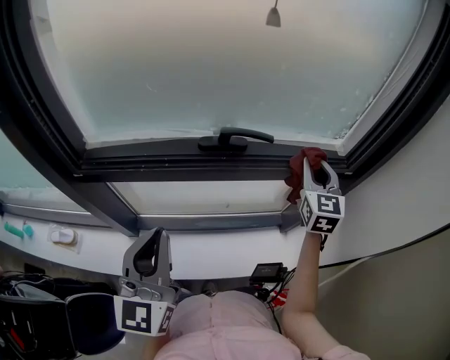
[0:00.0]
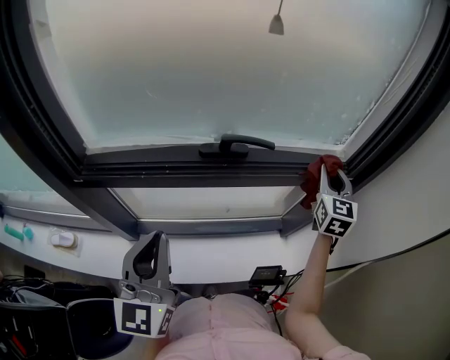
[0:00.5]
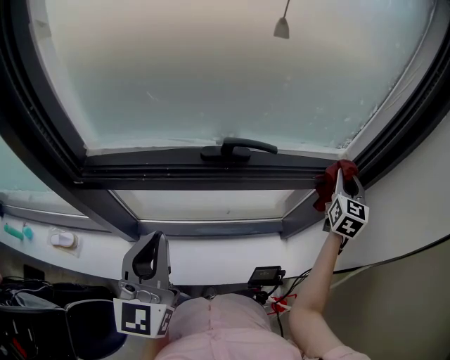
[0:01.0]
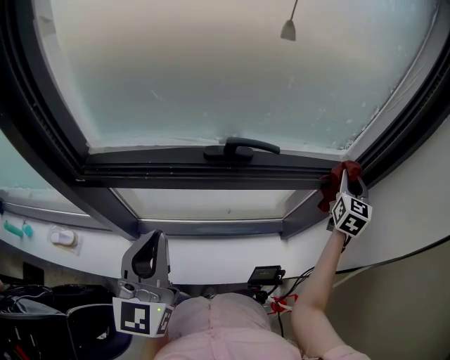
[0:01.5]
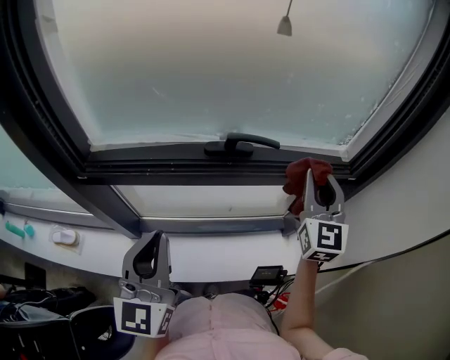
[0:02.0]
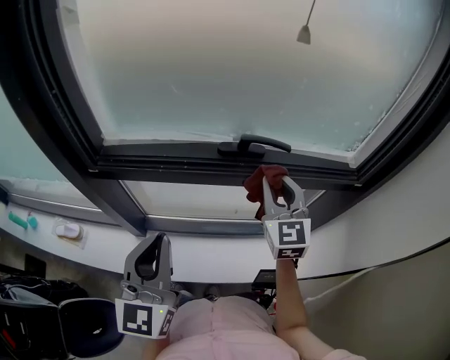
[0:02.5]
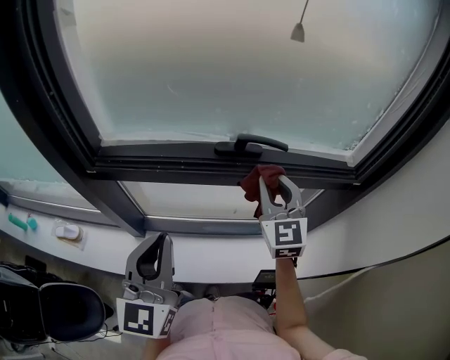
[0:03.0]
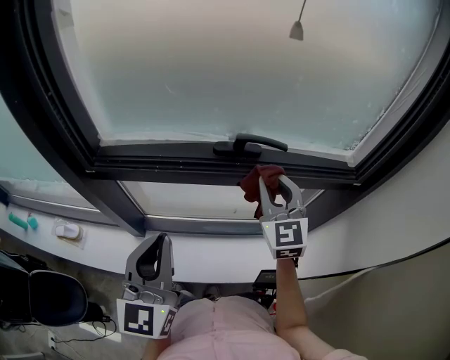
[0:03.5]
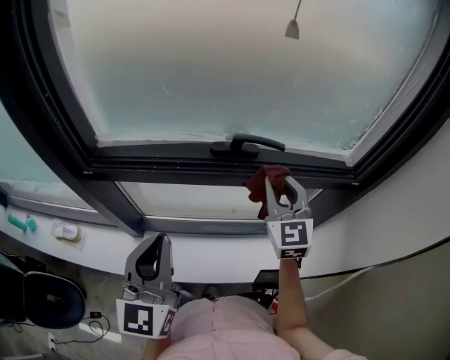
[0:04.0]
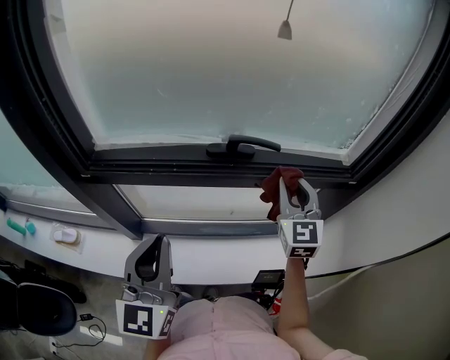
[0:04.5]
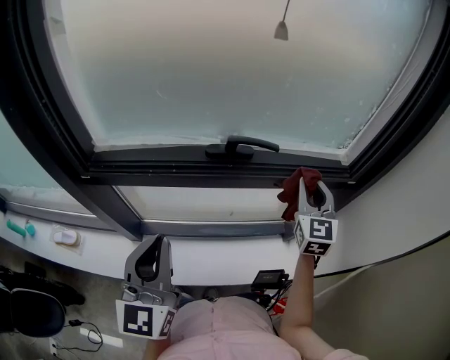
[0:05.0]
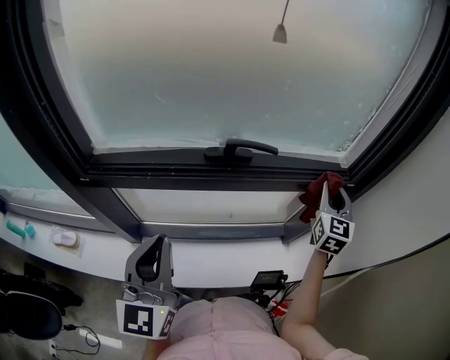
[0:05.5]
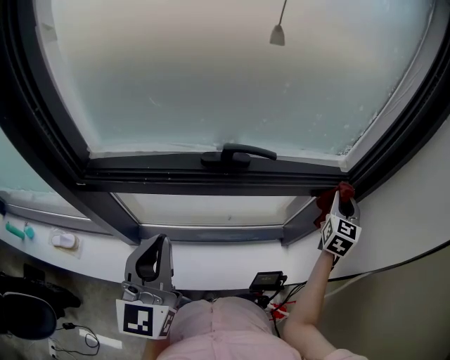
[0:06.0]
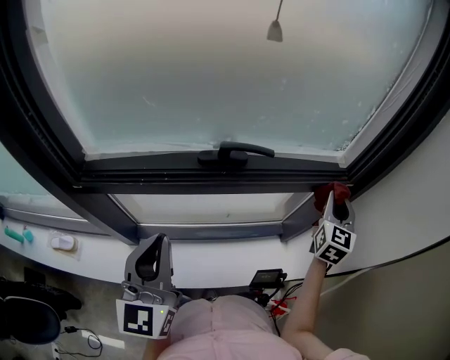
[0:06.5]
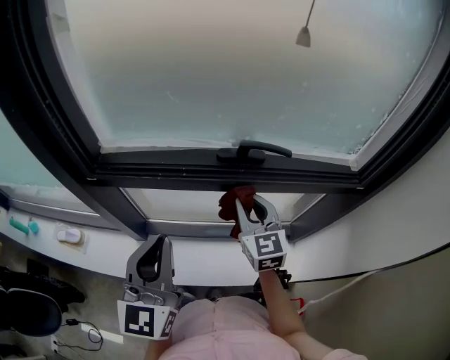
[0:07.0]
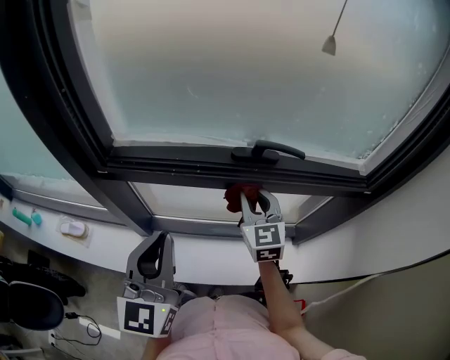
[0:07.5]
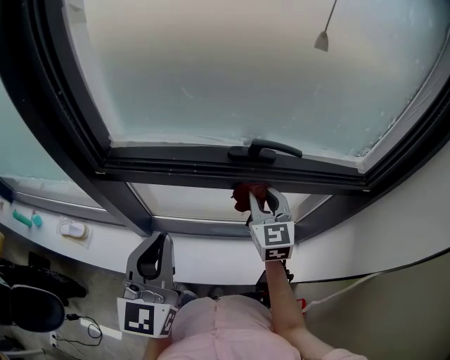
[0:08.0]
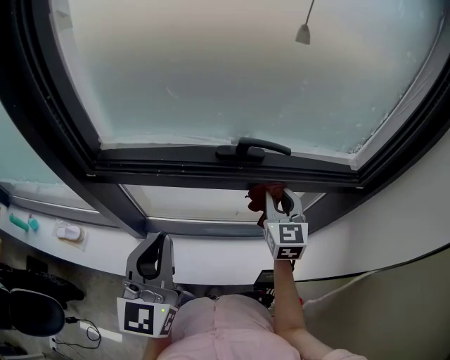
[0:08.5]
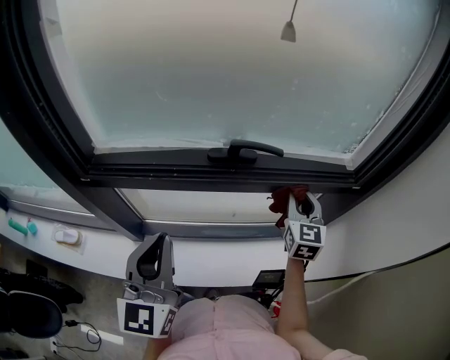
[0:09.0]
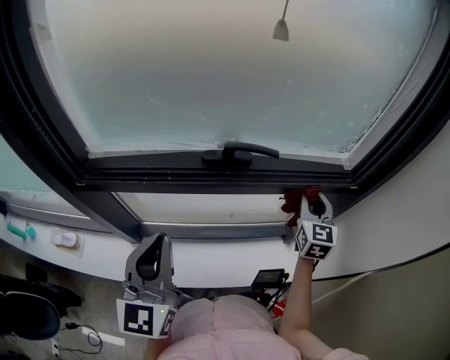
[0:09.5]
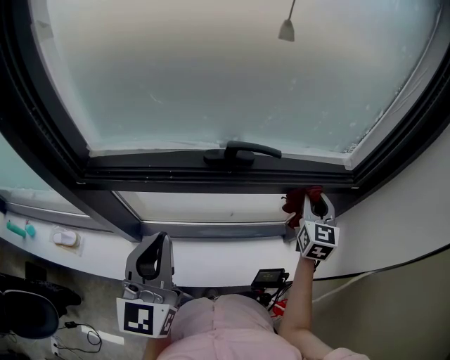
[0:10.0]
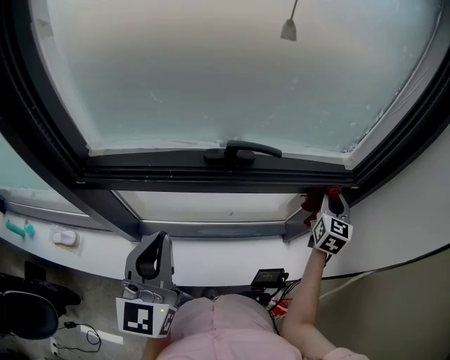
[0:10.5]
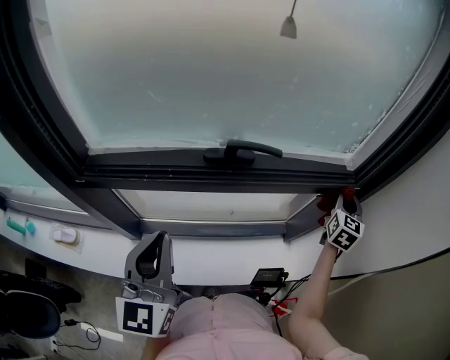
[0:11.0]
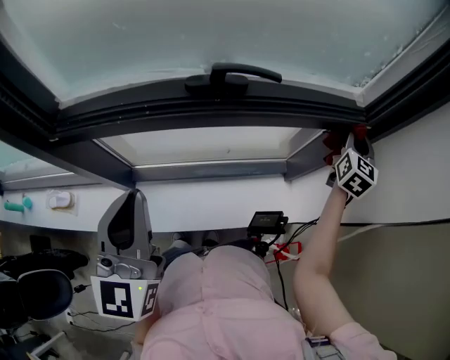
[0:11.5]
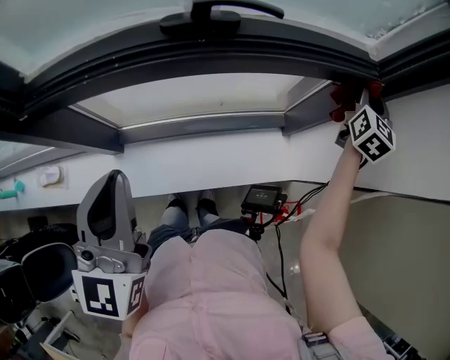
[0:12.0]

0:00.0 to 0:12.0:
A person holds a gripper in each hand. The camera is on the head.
0:00.0 to 0:02.0: The right gripper goes some 5 cm backward, and travels to the right and back again, roughly 15 cm each way.
0:02.0 to 0:04.0: The right gripper is displaced to the left and downward by roughly 10 cm.
0:04.0 to 0:06.0: The right gripper goes roughly 25 cm to the right, and changes its angle by approximately 40 degrees.
0:06.0 to 0:08.0: The left gripper moves about 5 cm; the right gripper shifts approximately 35 cm to the left, and rotates some 40 degrees.
0:08.0 to 0:10.0: The right gripper goes roughly 20 cm to the right, and changes its angle by approximately 20 degrees.
0:10.0 to 0:12.0: The right gripper travels to the right by roughly 15 cm.

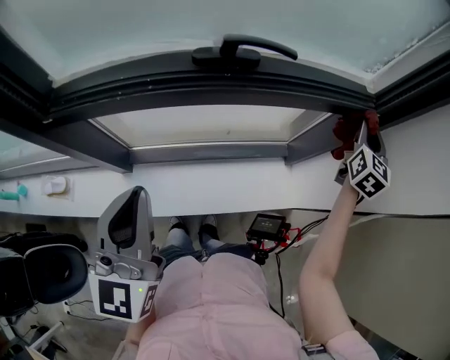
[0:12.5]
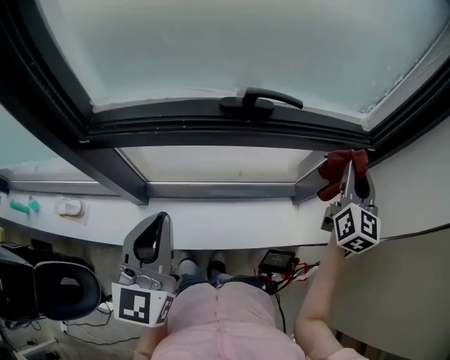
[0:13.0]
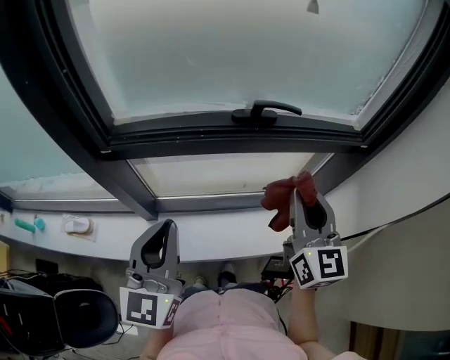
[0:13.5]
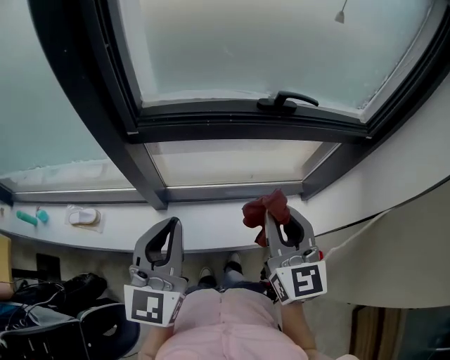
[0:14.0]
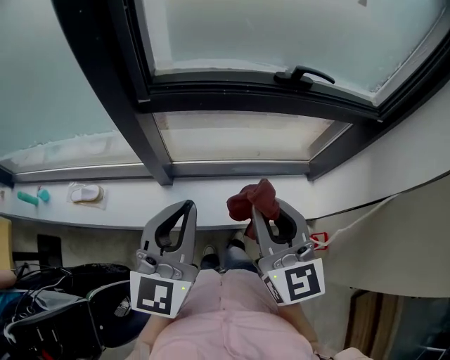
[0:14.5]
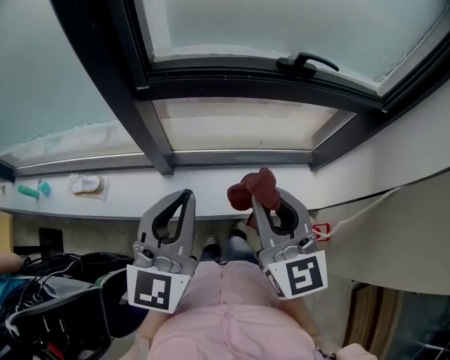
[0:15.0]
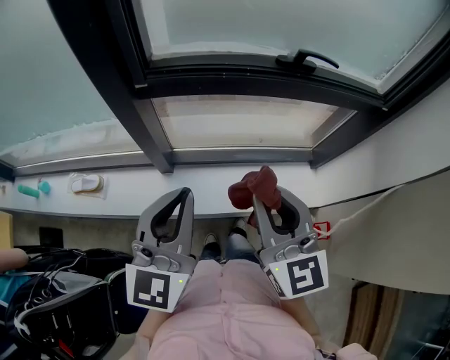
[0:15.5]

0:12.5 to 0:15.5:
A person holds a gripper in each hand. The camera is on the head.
0:12.5 to 0:14.0: The left gripper shifts roughly 15 cm backward and to the left, while the right gripper heads to the left and backward, covering some 50 cm, and rotates about 40 degrees.
0:14.0 to 0:15.5: The right gripper shifts some 5 cm to the left.

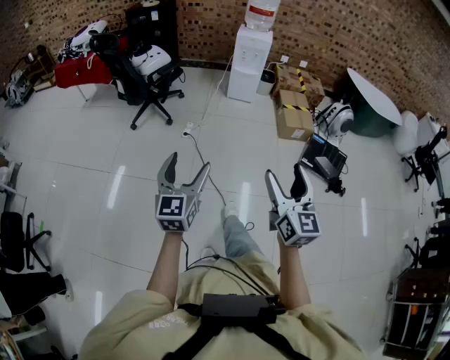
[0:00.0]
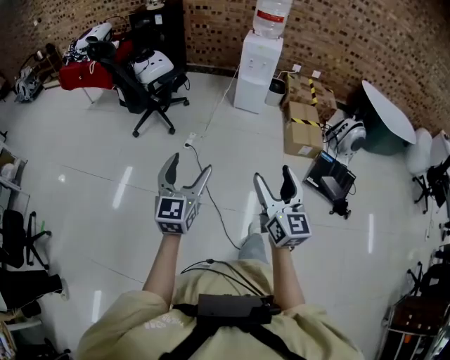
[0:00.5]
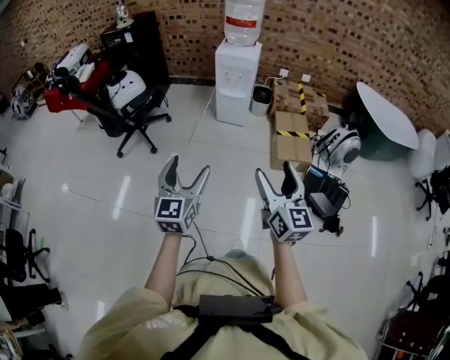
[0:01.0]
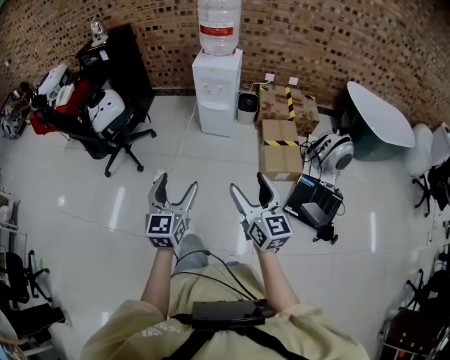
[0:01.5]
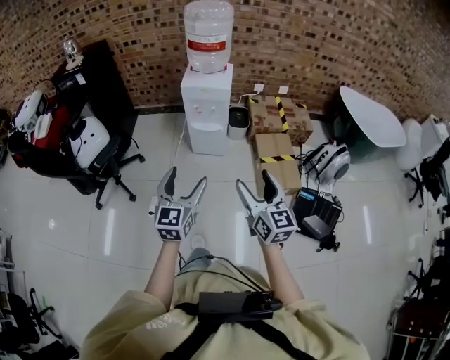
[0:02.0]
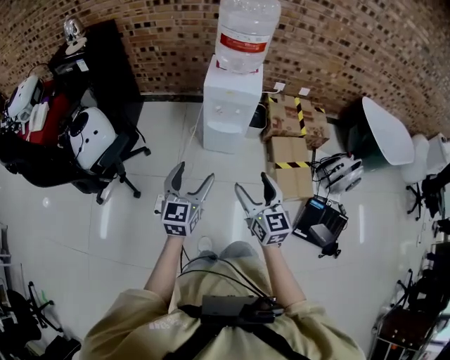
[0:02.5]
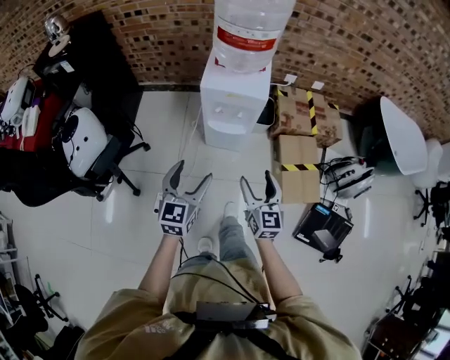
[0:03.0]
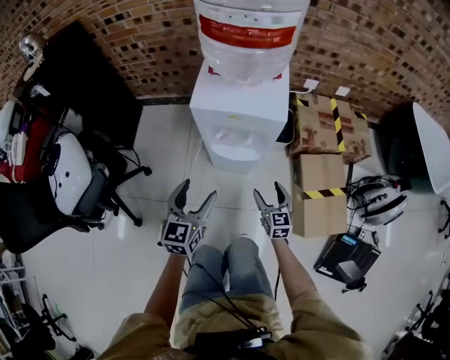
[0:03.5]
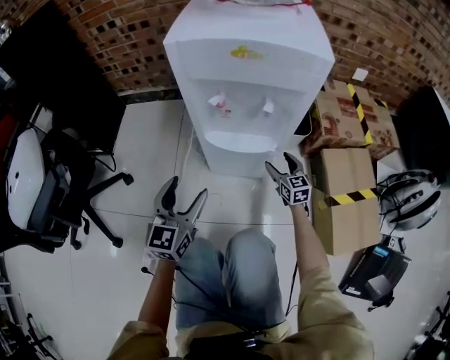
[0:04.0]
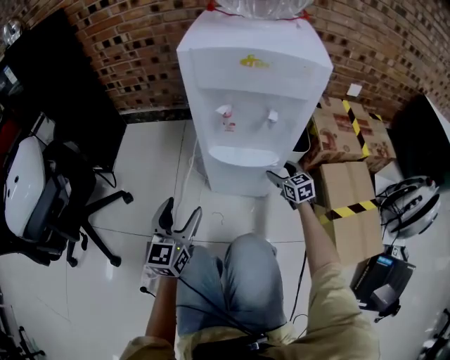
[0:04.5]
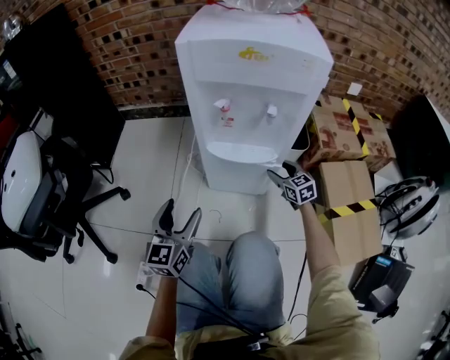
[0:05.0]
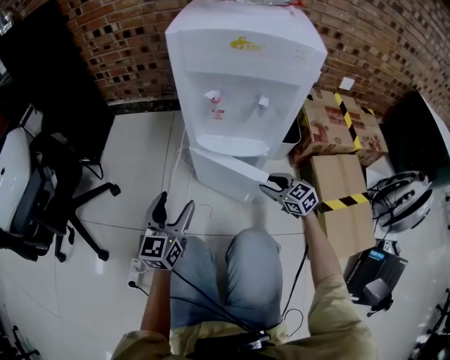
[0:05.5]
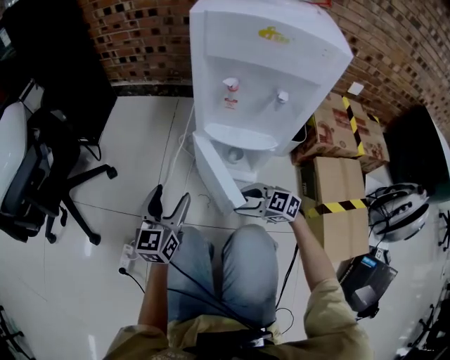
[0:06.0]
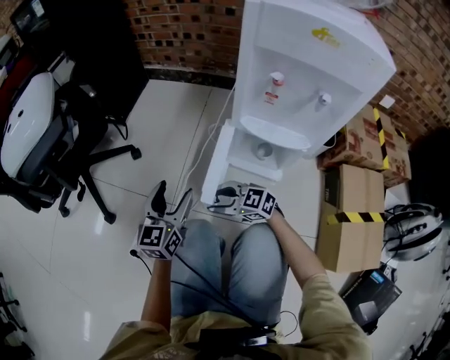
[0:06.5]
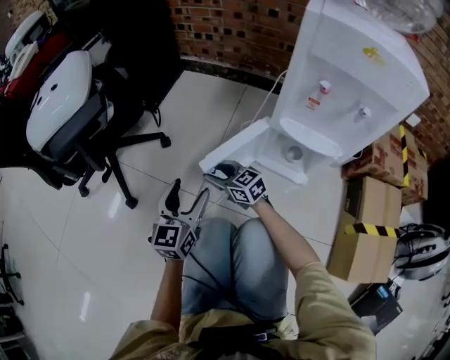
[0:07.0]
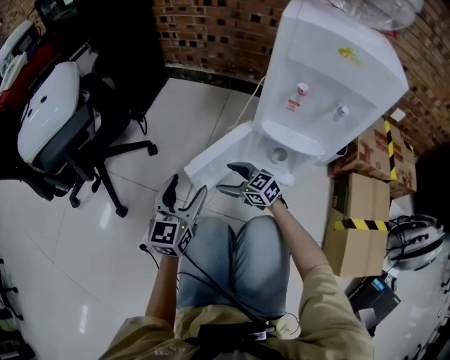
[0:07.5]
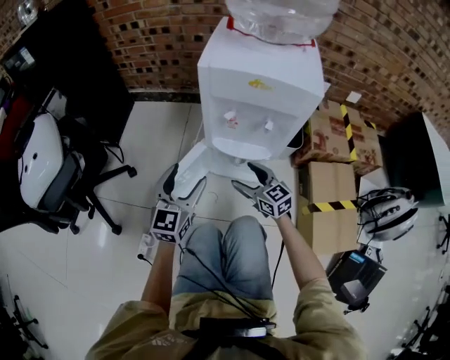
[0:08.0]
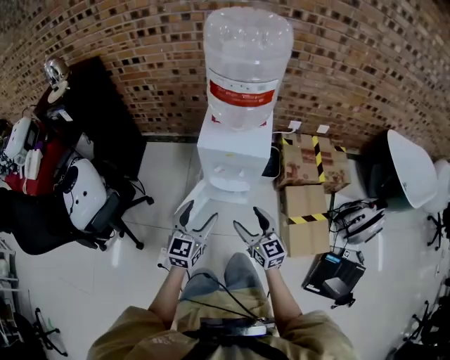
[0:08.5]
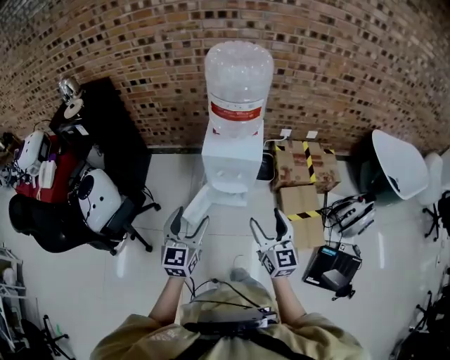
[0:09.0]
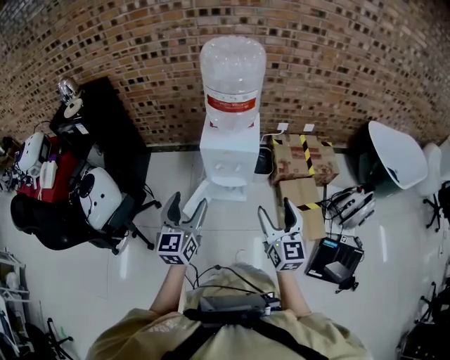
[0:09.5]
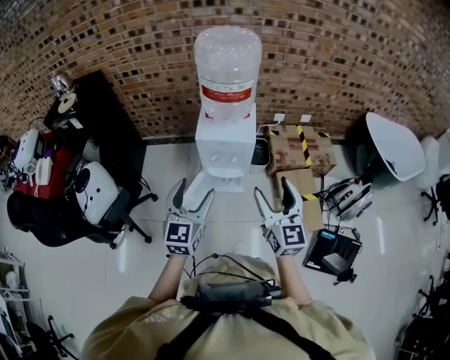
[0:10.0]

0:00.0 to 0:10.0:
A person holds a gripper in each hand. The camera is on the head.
0:00.0 to 0:02.0: The pair of grippers is taken forward and to the right, some 70 cm.
0:02.0 to 0:04.0: The pair of grippers is taken forward, roughly 50 cm. The grippers both shift downward by about 60 cm. The right gripper swivels approximately 20 degrees.
0:04.0 to 0:06.0: The right gripper ends up about 20 cm from where it was, and rotates roughly 60 degrees, while the left gripper goes some 10 cm downward.
0:06.0 to 0:08.0: Both grippers travel together upward, some 15 cm. The right gripper rotates some 40 degrees, and opens its fingers.
0:08.0 to 0:10.0: Both grippers move upward, approximately 50 cm. The right gripper turns by about 40 degrees.

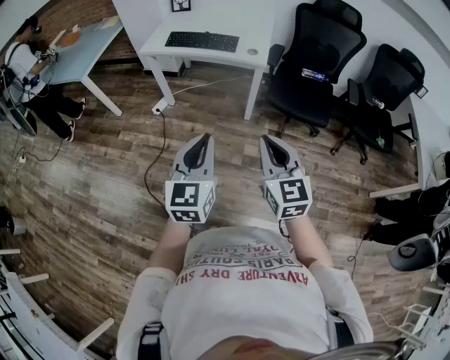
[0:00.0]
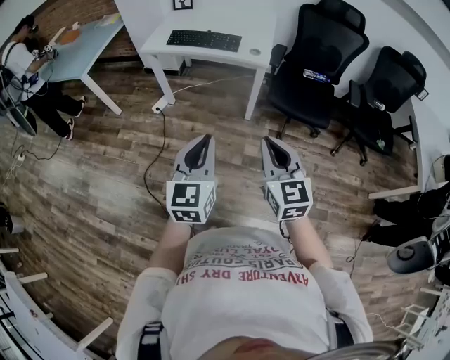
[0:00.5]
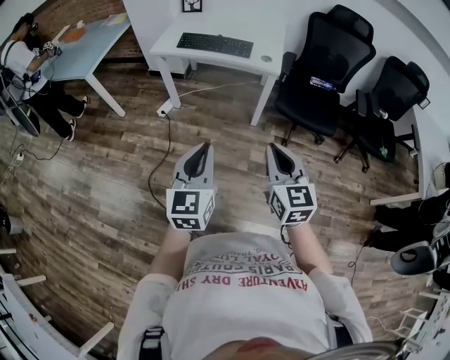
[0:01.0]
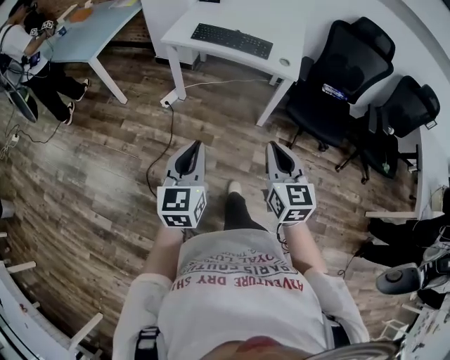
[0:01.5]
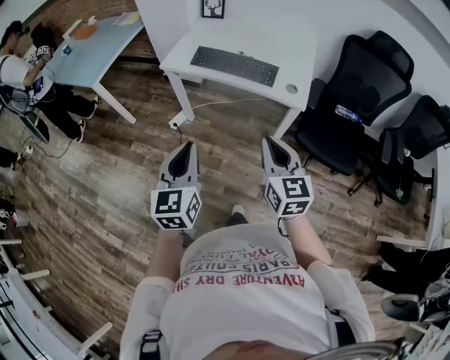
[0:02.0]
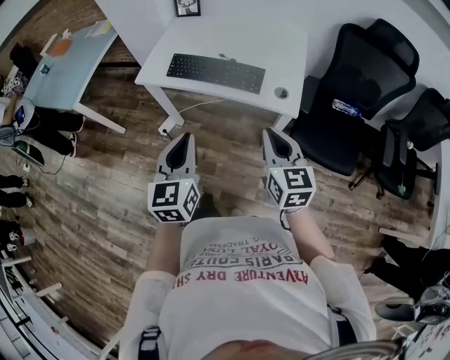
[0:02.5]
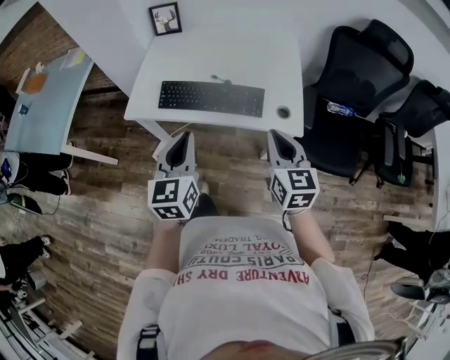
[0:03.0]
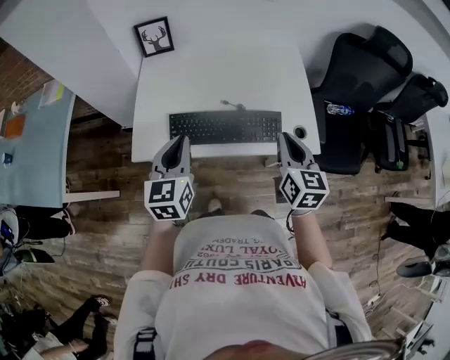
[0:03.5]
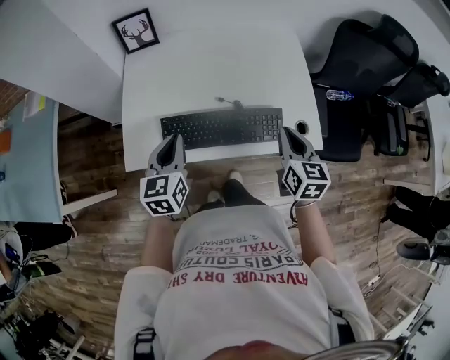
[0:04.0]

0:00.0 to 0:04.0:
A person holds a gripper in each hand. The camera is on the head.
0:00.0 to 0:02.0: The right gripper heads forward, covering some 30 cm. The left gripper heads forward and to the left, covering roughly 30 cm.
0:02.0 to 0:04.0: The pair of grippers is taken roughly 50 cm. The left gripper changes its angle by about 30 degrees; the right gripper swivels roughly 40 degrees.
